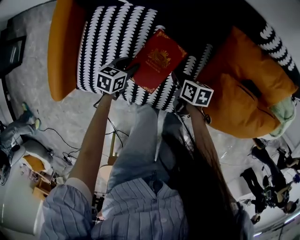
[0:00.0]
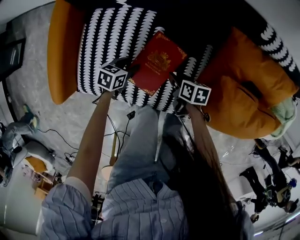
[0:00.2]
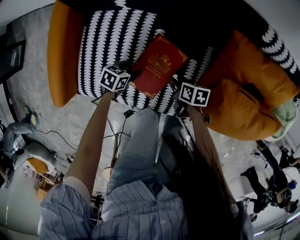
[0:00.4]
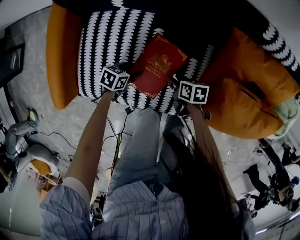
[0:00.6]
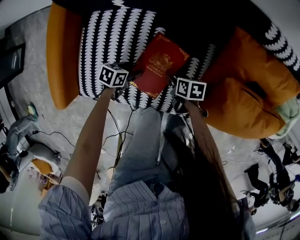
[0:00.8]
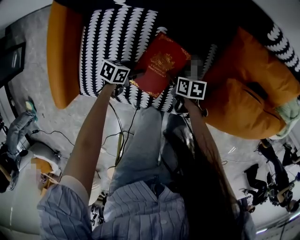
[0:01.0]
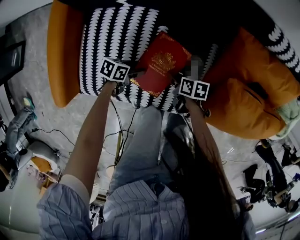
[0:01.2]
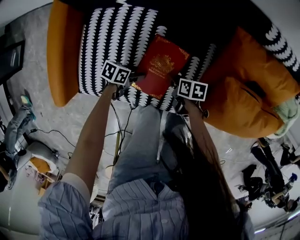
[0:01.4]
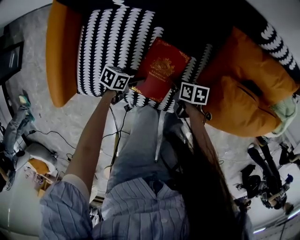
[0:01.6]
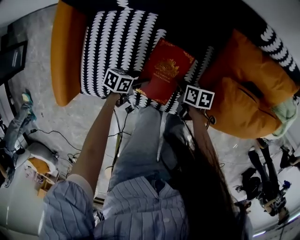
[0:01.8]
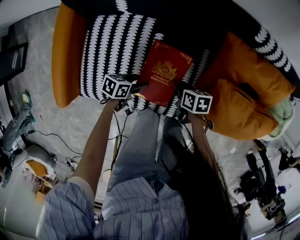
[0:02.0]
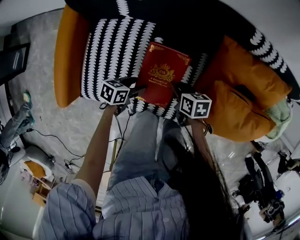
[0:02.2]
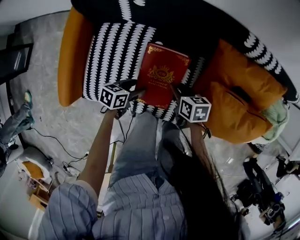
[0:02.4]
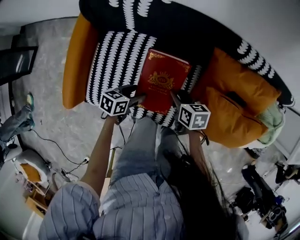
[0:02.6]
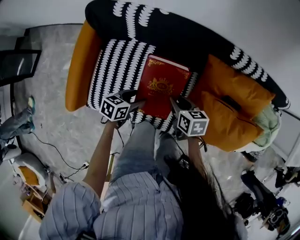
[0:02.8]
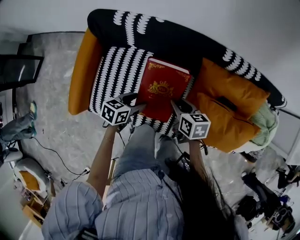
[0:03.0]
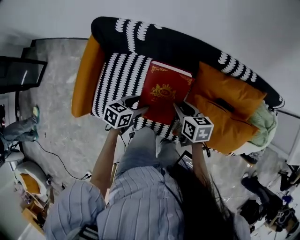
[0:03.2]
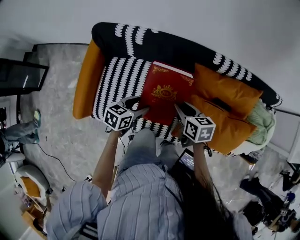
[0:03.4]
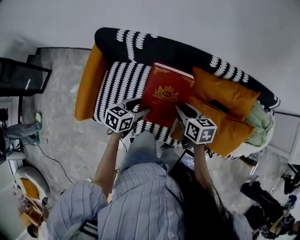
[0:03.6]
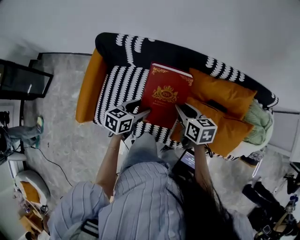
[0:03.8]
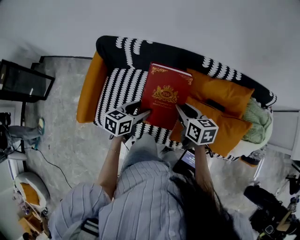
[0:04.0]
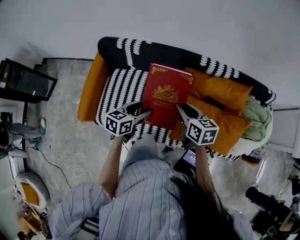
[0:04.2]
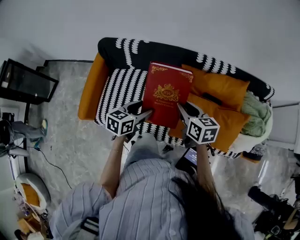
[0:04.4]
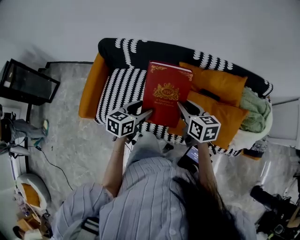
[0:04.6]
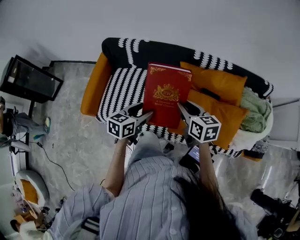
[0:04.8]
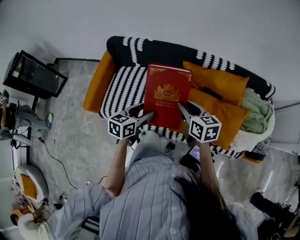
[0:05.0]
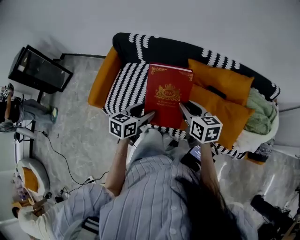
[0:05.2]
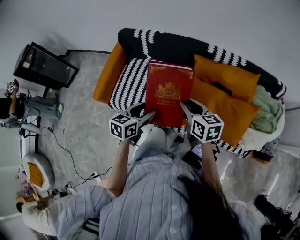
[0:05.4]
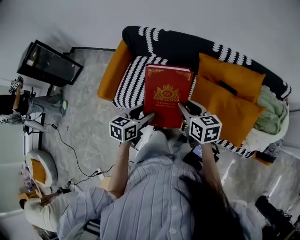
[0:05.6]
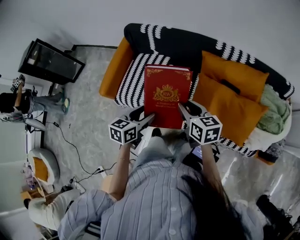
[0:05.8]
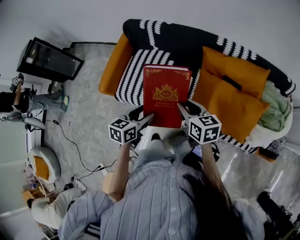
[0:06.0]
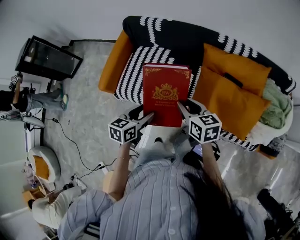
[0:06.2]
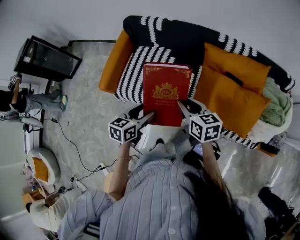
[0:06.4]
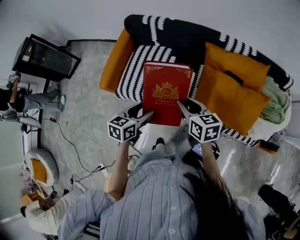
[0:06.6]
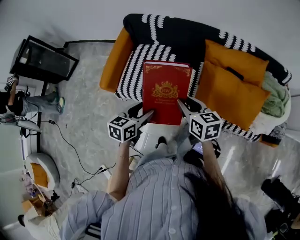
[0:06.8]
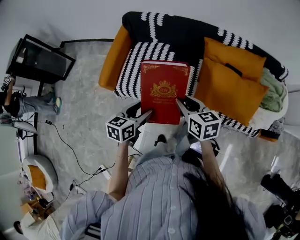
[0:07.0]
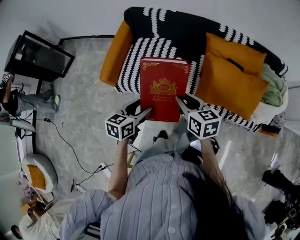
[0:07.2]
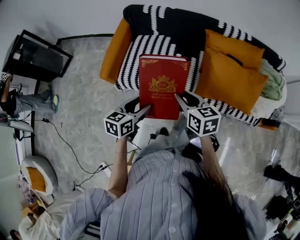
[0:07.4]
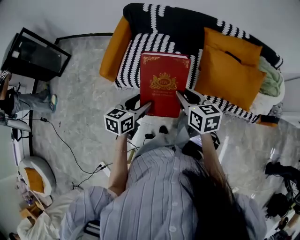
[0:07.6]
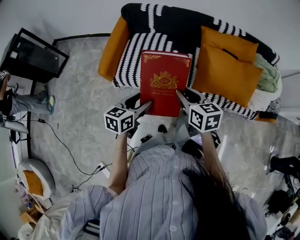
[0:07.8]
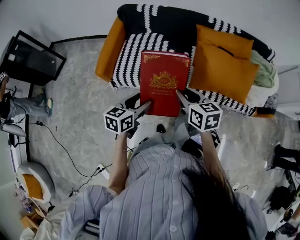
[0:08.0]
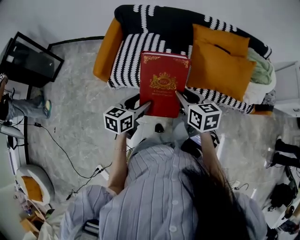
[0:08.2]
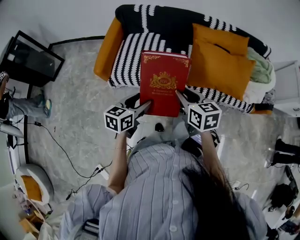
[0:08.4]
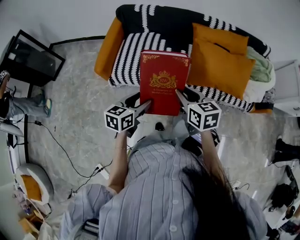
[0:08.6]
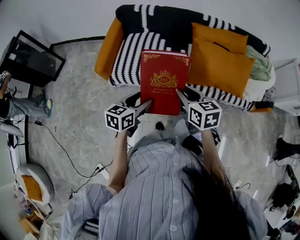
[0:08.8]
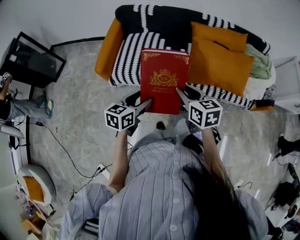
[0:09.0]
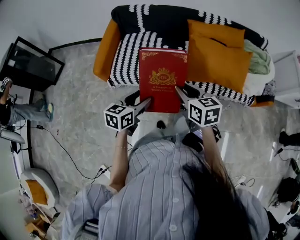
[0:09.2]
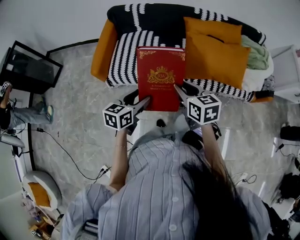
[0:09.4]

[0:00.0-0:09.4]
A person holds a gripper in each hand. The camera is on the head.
0:00.0 to 0:01.6: The left gripper turns by approximately 30 degrees, and opens up, while the right gripper opens up.
0:01.6 to 0:03.2: Both grippers travel together upward, roughly 25 cm. The left gripper changes its angle by about 30 degrees, while the right gripper turns by approximately 30 degrees.
0:03.2 to 0:04.8: Both grippers travel together upward, backward and to the right, about 25 cm.
0:04.8 to 0:06.2: The right gripper is displaced to the left and backward by roughly 10 cm. The left gripper goes some 10 cm backward and to the left.
0:06.2 to 0:07.8: The left gripper goes about 20 cm to the left and backward; the right gripper is displaced backward and to the left by about 20 cm.
0:07.8 to 0:09.4: Both grippers move backward, roughly 5 cm.

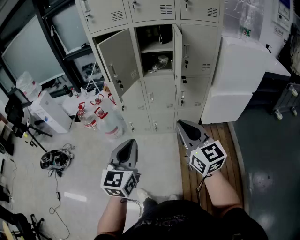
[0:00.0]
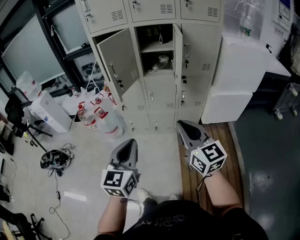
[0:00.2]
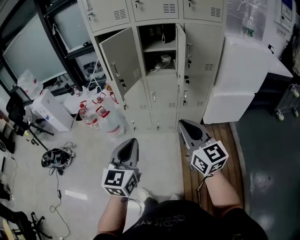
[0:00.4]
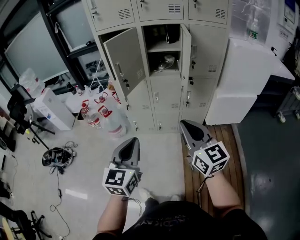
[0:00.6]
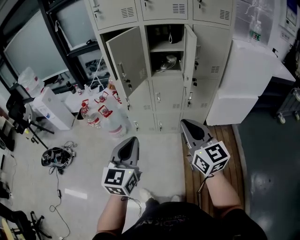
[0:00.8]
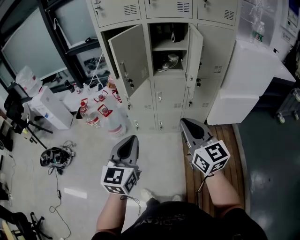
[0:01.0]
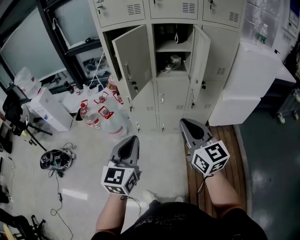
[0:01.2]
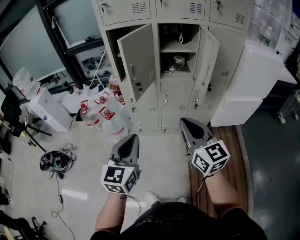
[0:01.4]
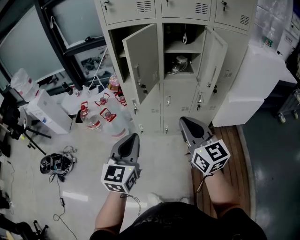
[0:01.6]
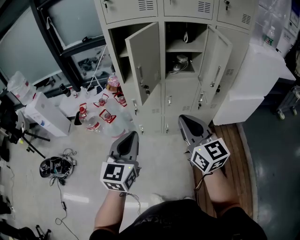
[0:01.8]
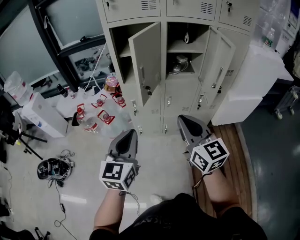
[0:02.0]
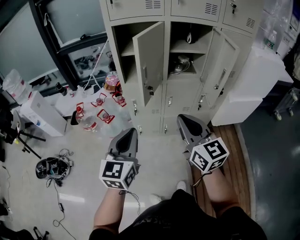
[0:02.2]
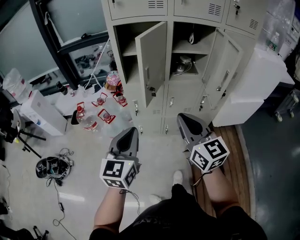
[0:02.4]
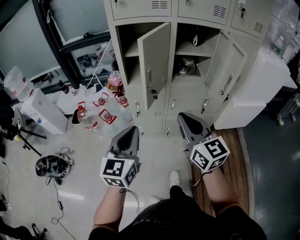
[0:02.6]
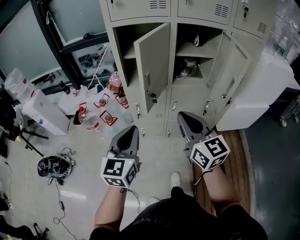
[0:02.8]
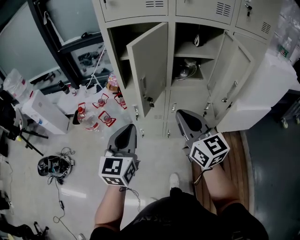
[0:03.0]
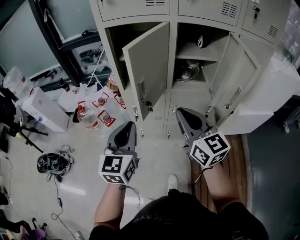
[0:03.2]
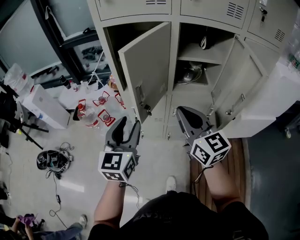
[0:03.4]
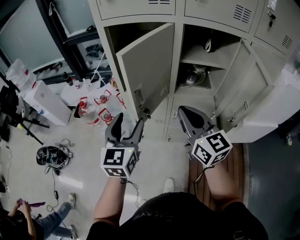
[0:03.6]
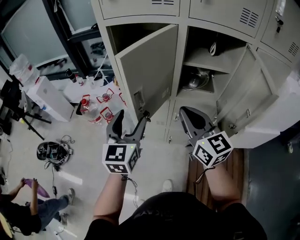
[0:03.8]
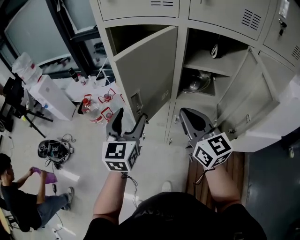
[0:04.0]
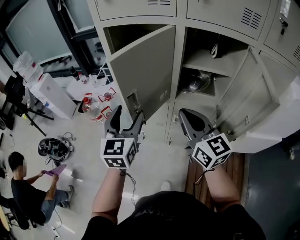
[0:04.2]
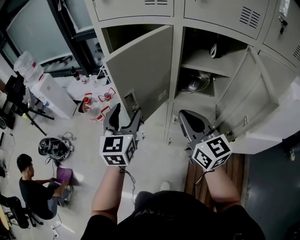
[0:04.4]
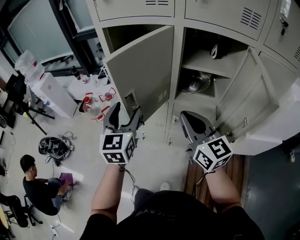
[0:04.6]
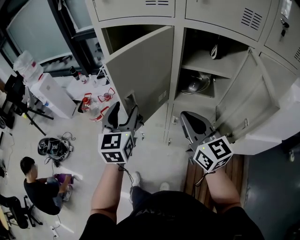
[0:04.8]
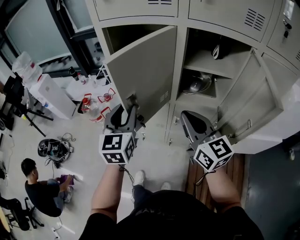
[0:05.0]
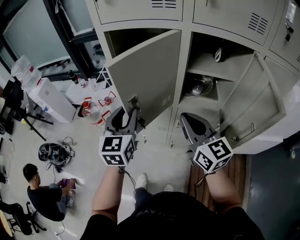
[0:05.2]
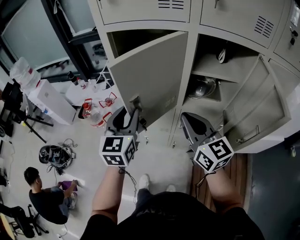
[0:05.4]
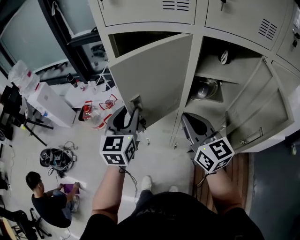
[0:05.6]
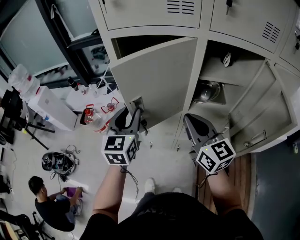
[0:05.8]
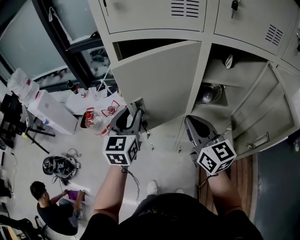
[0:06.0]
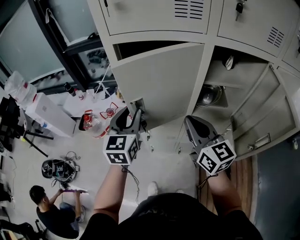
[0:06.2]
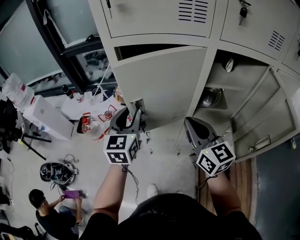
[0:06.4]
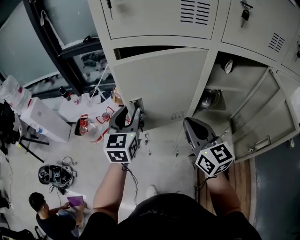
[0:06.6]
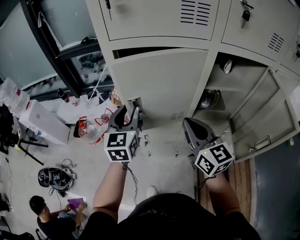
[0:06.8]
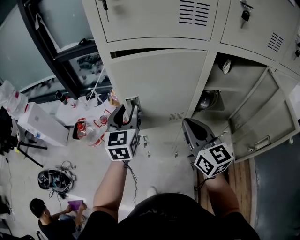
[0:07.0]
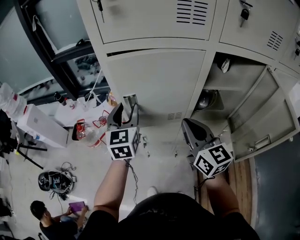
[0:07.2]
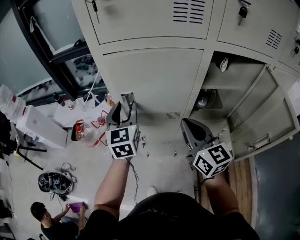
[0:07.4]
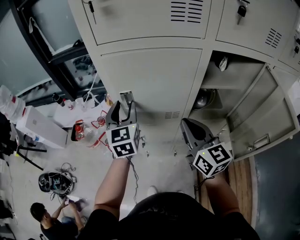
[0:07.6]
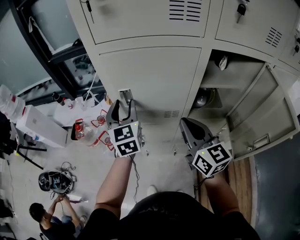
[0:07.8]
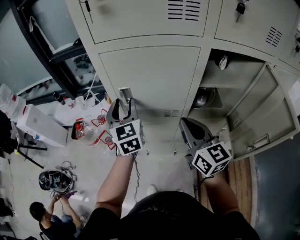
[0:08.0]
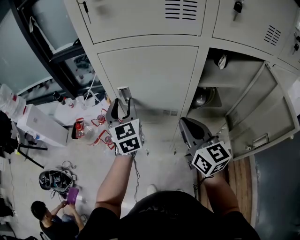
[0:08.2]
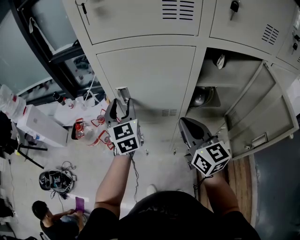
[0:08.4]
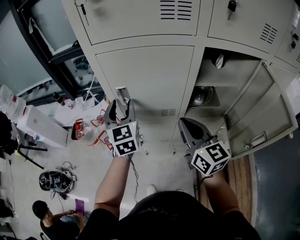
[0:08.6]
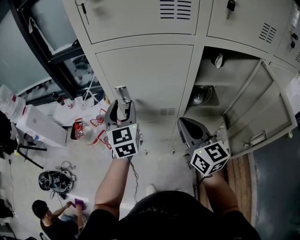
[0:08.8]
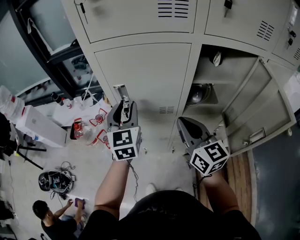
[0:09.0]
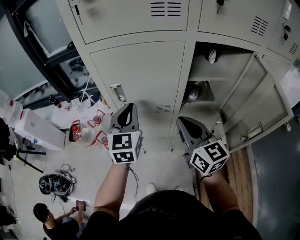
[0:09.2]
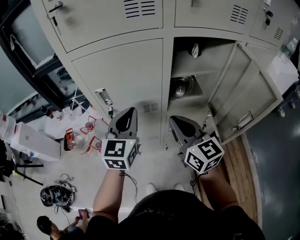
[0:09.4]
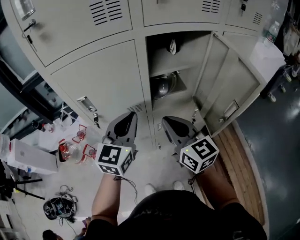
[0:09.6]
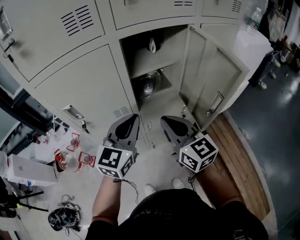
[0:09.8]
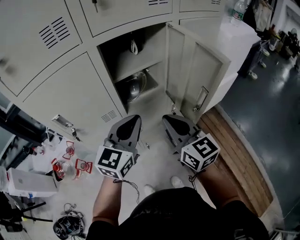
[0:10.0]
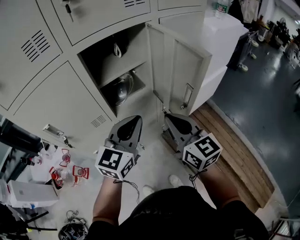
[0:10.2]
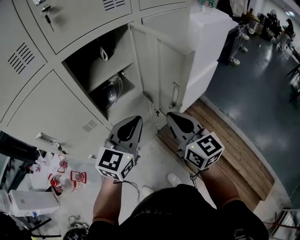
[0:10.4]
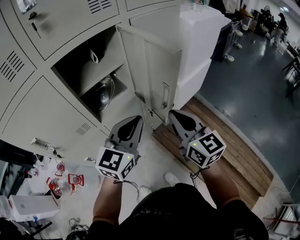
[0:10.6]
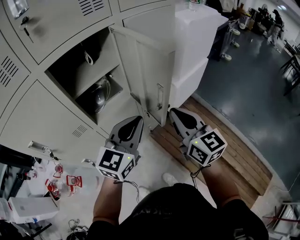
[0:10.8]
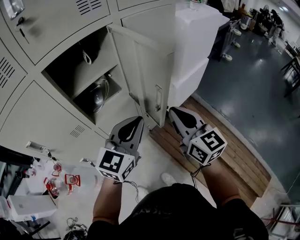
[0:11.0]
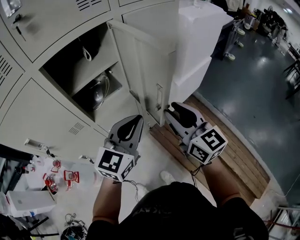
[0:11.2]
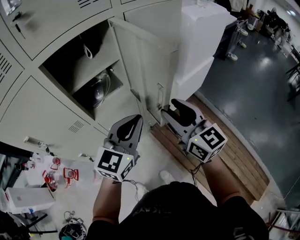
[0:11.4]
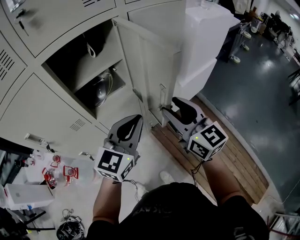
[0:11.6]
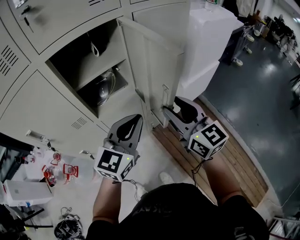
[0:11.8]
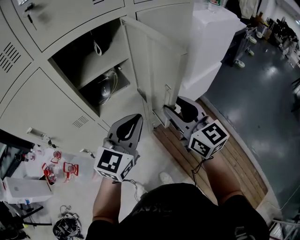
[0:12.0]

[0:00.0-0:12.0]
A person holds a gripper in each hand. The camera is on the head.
0:00.0 to 0:01.6: The left gripper moves forward and to the left, about 20 cm, while the right gripper moves to the left and forward, about 20 cm.
0:01.6 to 0:03.0: The grippers both shift forward by approximately 15 cm.
0:03.0 to 0:04.4: The grippers both shift forward and to the right by about 15 cm. The left gripper opens.
0:04.4 to 0:06.0: Both grippers travel together forward and to the left, some 10 cm. The left gripper closes its fingers.
0:06.0 to 0:07.6: The left gripper heads forward, covering approximately 10 cm.
0:07.6 to 0:09.0: The grippers stay close to where they were, moving slightly.
0:09.0 to 0:10.4: The right gripper shifts by some 25 cm, and swivels about 30 degrees. Meanwhile the left gripper moves roughly 35 cm, turns by about 60 degrees, and closes.
0:10.4 to 0:12.0: The right gripper shifts roughly 5 cm forward, and opens its fingers.

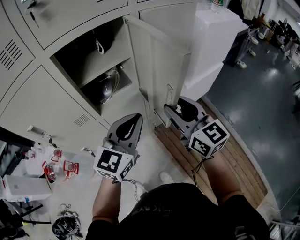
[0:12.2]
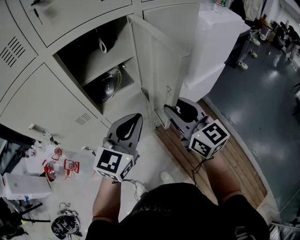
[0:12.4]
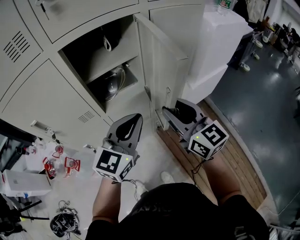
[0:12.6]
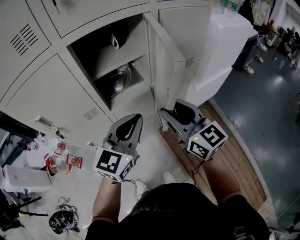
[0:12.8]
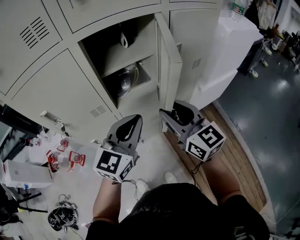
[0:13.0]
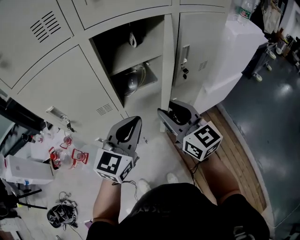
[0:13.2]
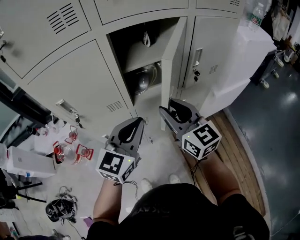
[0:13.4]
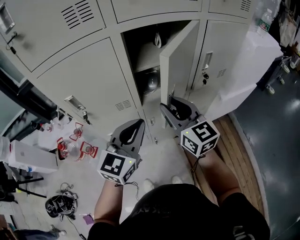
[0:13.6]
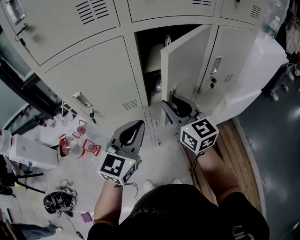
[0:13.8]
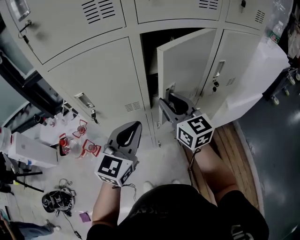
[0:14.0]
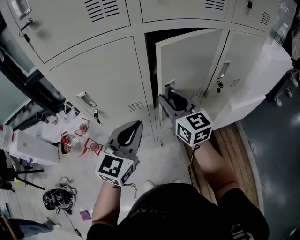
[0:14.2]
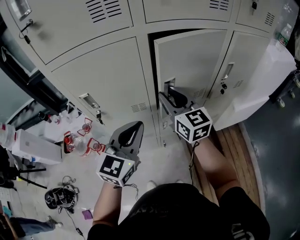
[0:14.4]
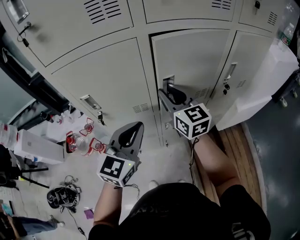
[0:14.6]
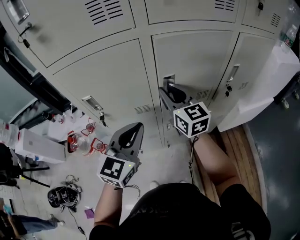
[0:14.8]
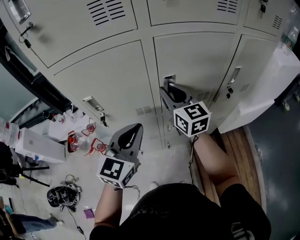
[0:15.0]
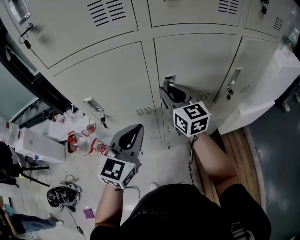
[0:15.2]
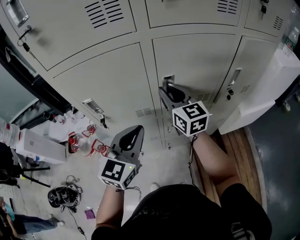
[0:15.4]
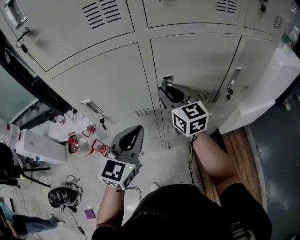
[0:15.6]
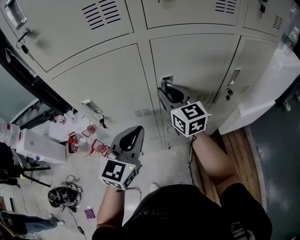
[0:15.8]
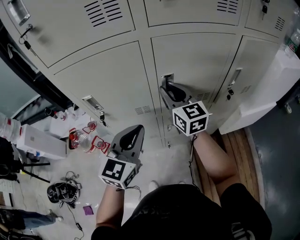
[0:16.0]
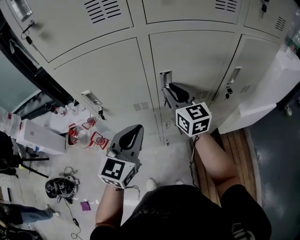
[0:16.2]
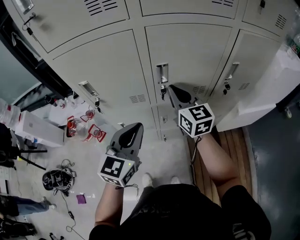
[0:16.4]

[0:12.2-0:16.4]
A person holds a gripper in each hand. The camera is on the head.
0:12.2 to 0:13.6: Both grippers travel together to the left, approximately 15 cm.
0:13.6 to 0:15.0: The left gripper moves to the left, approximately 10 cm; the right gripper travels forward and to the left by approximately 15 cm.
0:15.0 to 0:16.4: The left gripper changes place by roughly 5 cm, while the right gripper shifts by some 5 cm, and closes its fingers.
